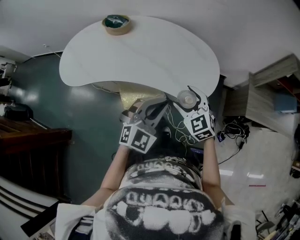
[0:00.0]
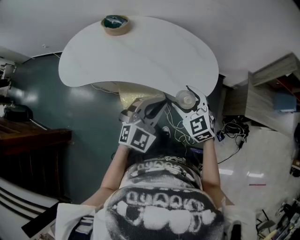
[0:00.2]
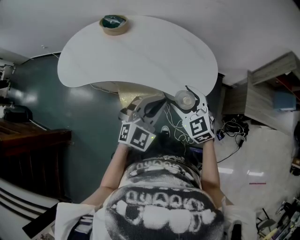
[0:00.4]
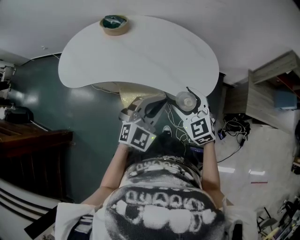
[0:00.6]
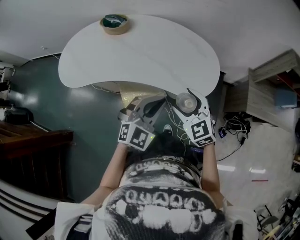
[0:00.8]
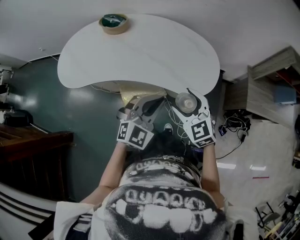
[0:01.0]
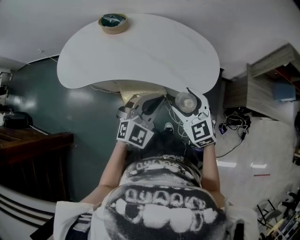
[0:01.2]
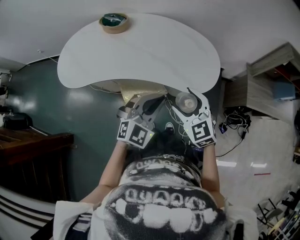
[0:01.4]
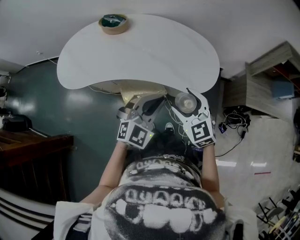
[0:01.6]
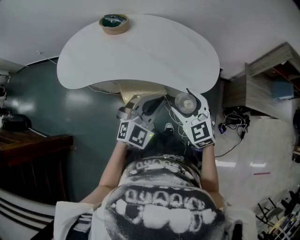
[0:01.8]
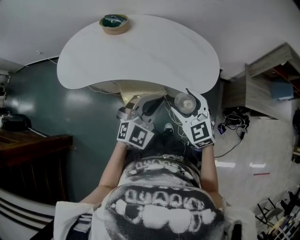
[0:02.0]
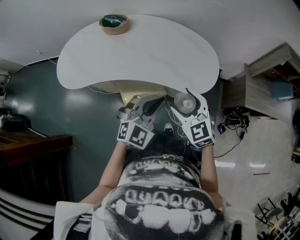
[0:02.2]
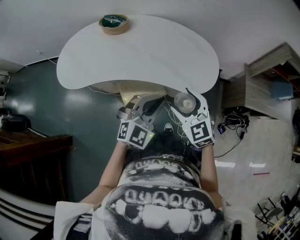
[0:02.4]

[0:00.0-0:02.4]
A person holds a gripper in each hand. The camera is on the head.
0:00.0 to 0:01.2: The right gripper shifts by approximately 5 cm.
0:01.2 to 0:02.4: The grippers stay close to where they were, moving slightly.

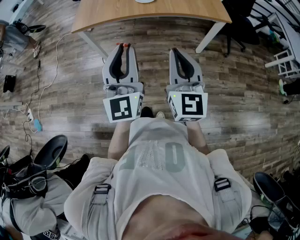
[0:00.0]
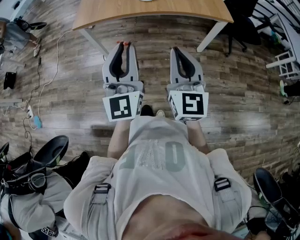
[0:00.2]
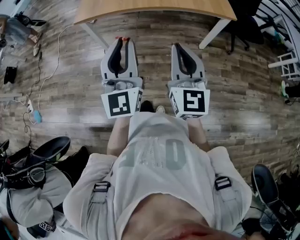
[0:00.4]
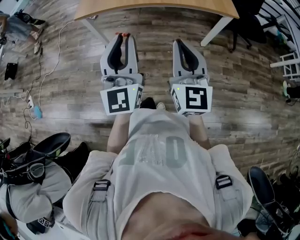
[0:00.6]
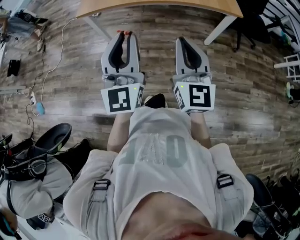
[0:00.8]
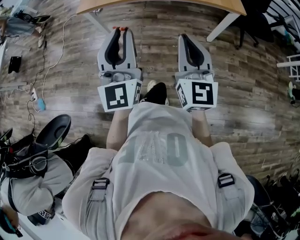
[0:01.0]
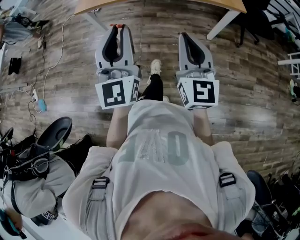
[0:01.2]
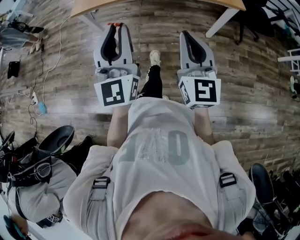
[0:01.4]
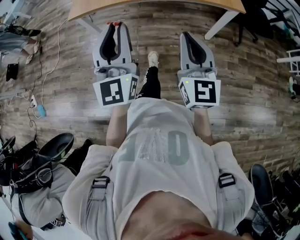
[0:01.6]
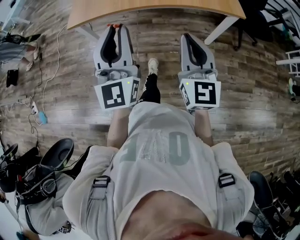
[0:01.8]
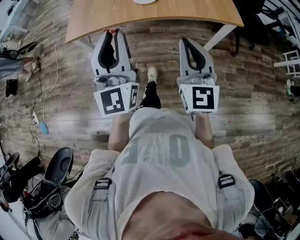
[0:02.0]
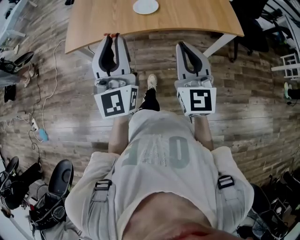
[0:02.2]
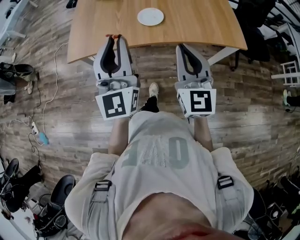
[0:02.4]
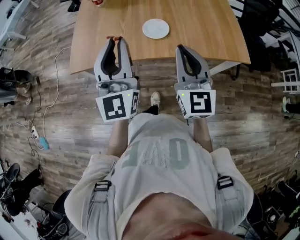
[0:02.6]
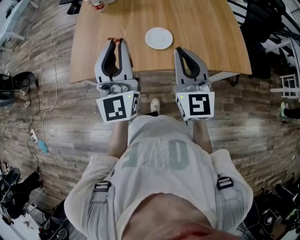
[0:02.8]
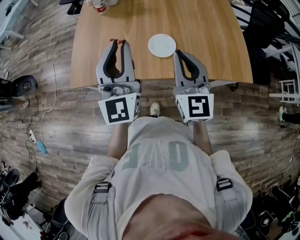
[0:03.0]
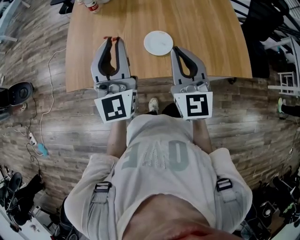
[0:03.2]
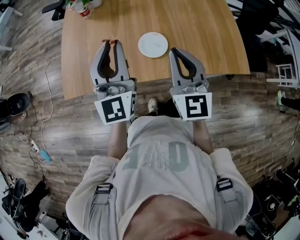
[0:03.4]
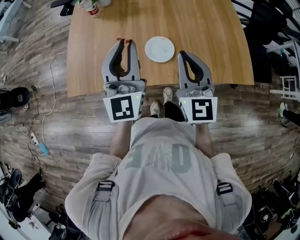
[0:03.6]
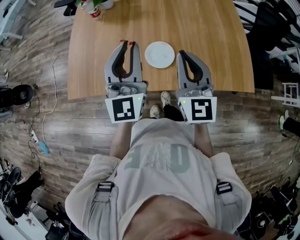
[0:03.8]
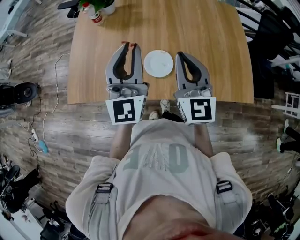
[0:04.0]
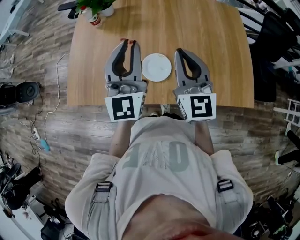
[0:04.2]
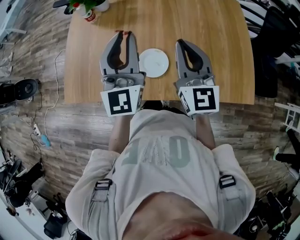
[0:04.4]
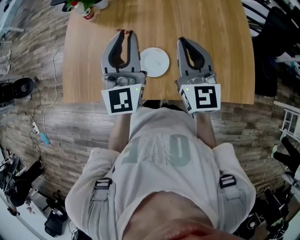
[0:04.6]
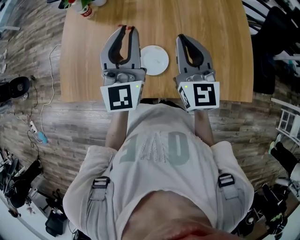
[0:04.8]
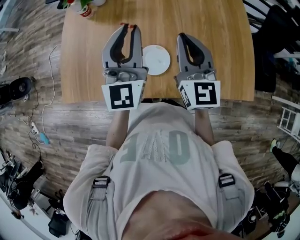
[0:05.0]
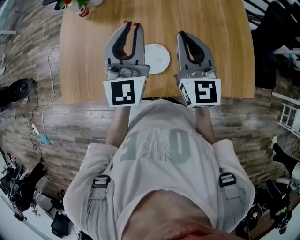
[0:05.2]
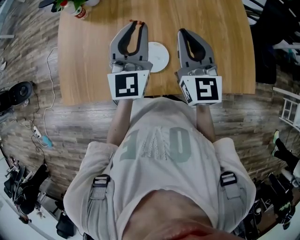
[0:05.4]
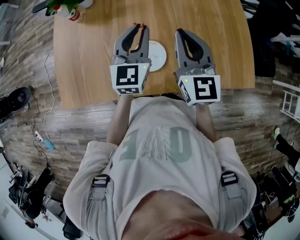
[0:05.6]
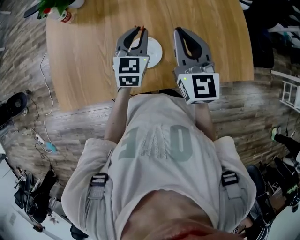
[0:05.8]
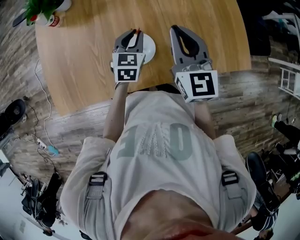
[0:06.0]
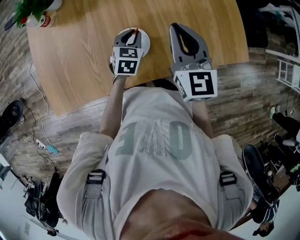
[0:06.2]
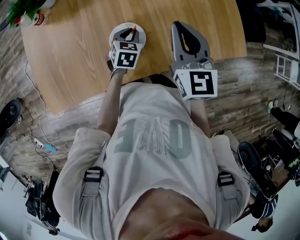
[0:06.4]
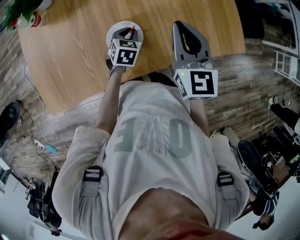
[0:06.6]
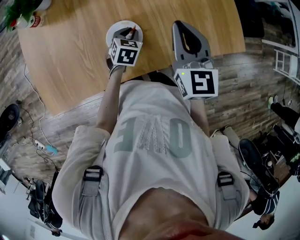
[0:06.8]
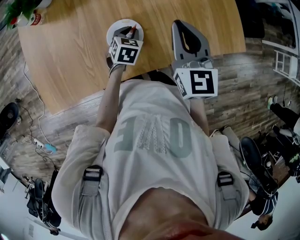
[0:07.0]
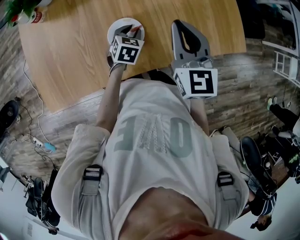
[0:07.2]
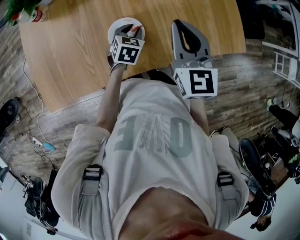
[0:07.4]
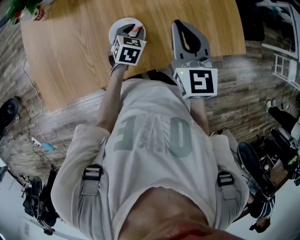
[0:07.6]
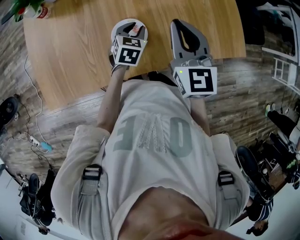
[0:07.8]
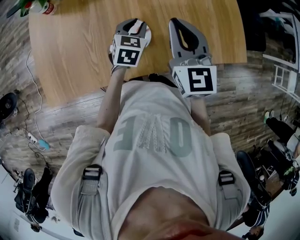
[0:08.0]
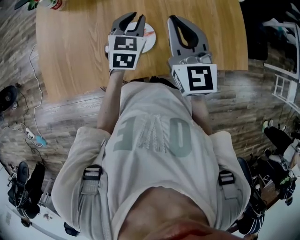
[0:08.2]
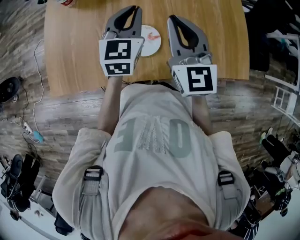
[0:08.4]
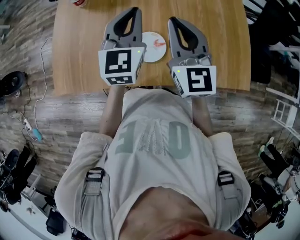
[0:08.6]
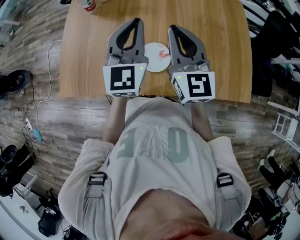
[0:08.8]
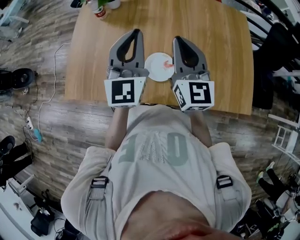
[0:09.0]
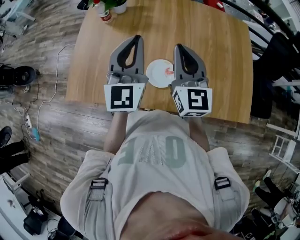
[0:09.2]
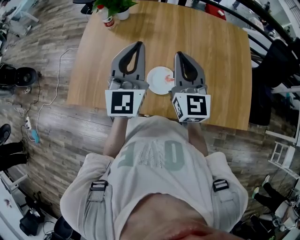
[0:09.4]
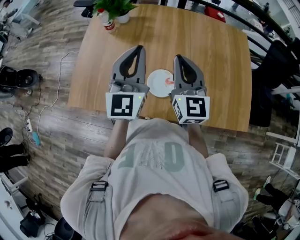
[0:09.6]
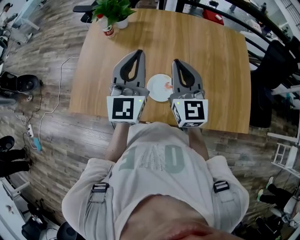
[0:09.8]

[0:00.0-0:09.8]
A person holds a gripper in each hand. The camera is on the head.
0:00.0 to 0:01.4: The grippers make only small movements.
0:01.4 to 0:02.8: Both grippers are carried forward, about 40 cm.
0:02.8 to 0:04.2: The right gripper is displaced forward by some 15 cm, while the left gripper goes roughly 20 cm forward and to the right.
0:04.2 to 0:05.6: The right gripper shifts by about 5 cm. The left gripper shifts approximately 15 cm downward, forward and to the right, and rotates approximately 30 degrees.
0:05.6 to 0:07.0: The left gripper shifts about 25 cm downward, and tilts its fingers some 40 degrees downward, while the right gripper heads to the right, covering approximately 5 cm.
0:07.0 to 0:08.4: The right gripper shifts some 10 cm to the left. Meanwhile the left gripper moves upward, some 25 cm, and points its fingers some 40 degrees further upward.
0:08.4 to 0:09.8: The right gripper shifts by about 5 cm. Meanwhile the left gripper heads upward and to the left, covering roughly 15 cm, and turns by about 30 degrees.

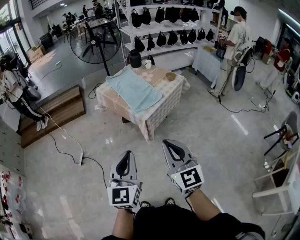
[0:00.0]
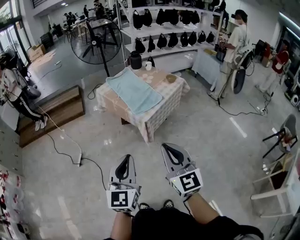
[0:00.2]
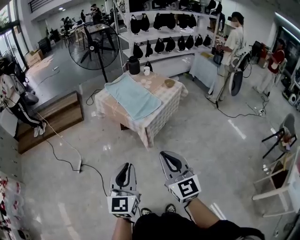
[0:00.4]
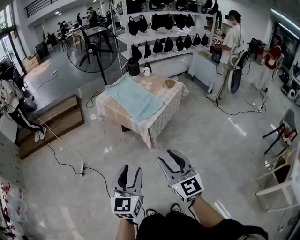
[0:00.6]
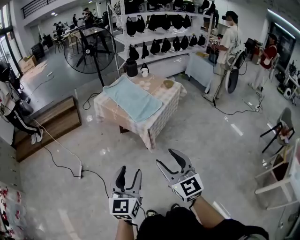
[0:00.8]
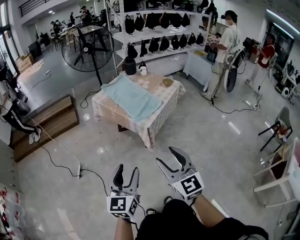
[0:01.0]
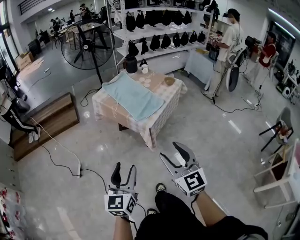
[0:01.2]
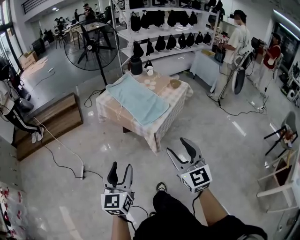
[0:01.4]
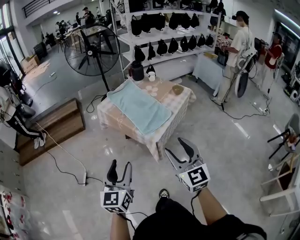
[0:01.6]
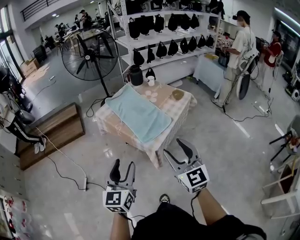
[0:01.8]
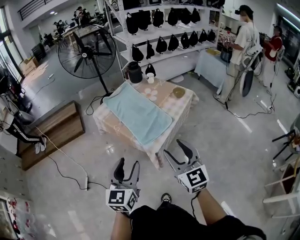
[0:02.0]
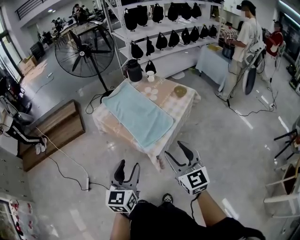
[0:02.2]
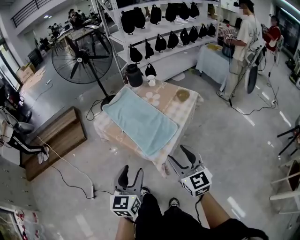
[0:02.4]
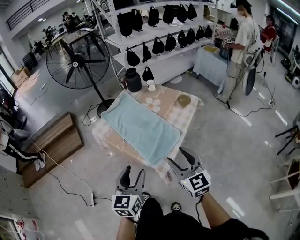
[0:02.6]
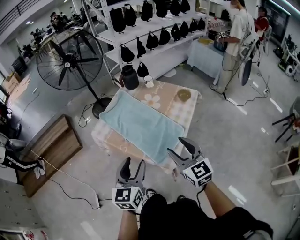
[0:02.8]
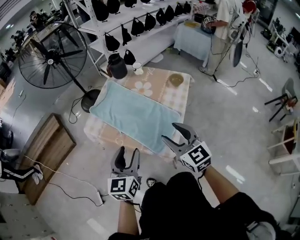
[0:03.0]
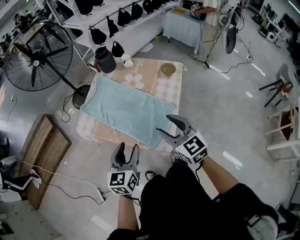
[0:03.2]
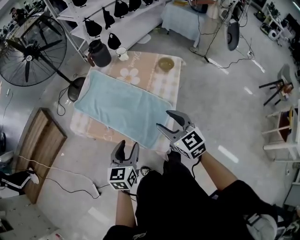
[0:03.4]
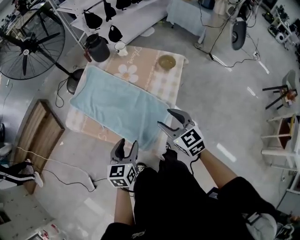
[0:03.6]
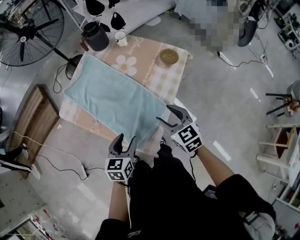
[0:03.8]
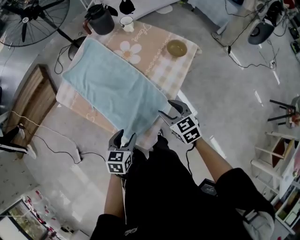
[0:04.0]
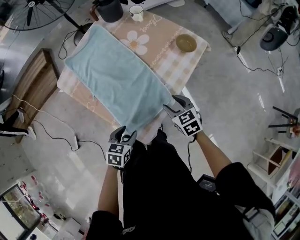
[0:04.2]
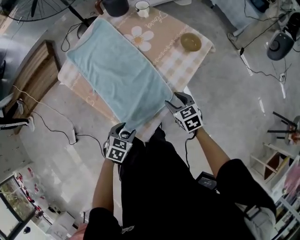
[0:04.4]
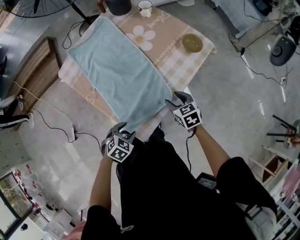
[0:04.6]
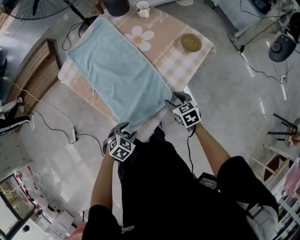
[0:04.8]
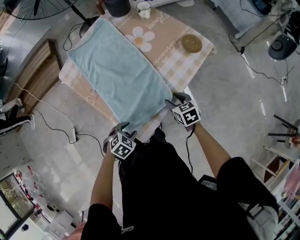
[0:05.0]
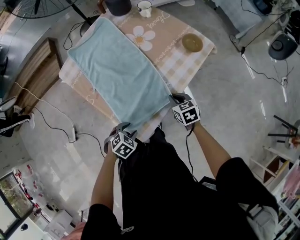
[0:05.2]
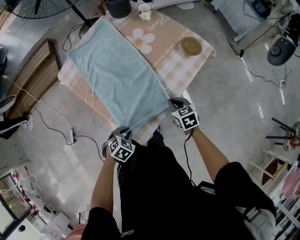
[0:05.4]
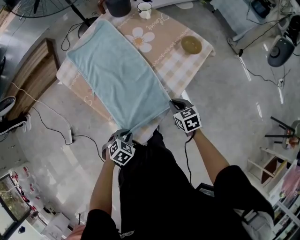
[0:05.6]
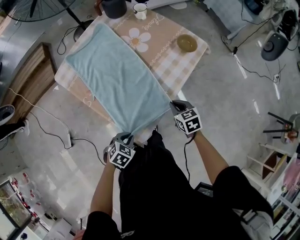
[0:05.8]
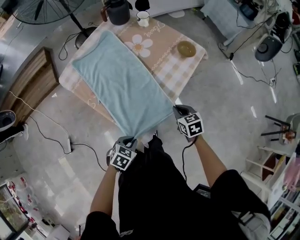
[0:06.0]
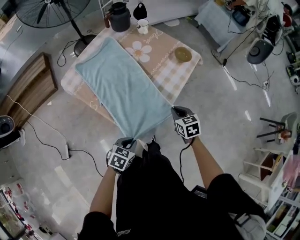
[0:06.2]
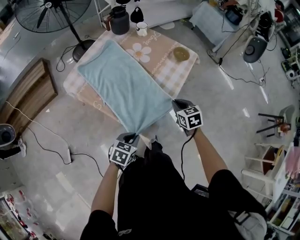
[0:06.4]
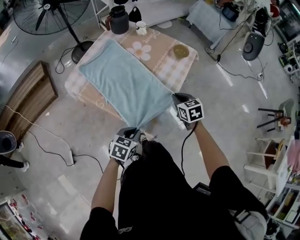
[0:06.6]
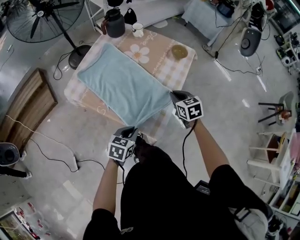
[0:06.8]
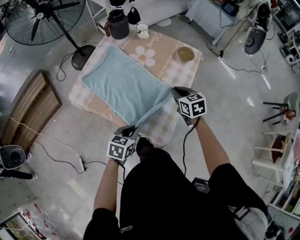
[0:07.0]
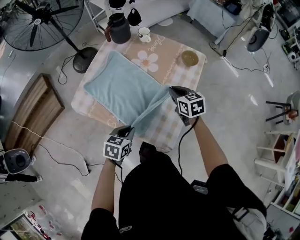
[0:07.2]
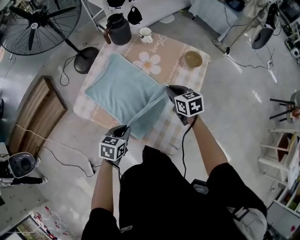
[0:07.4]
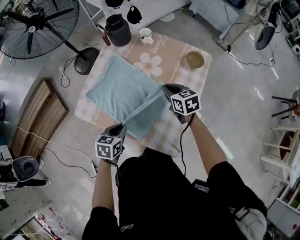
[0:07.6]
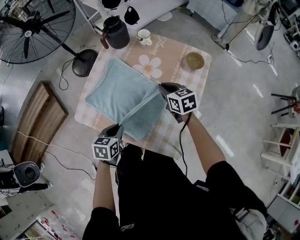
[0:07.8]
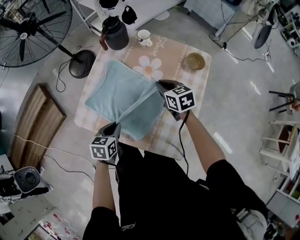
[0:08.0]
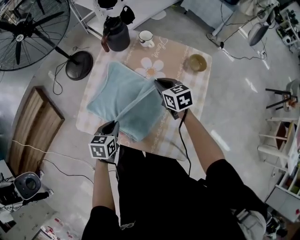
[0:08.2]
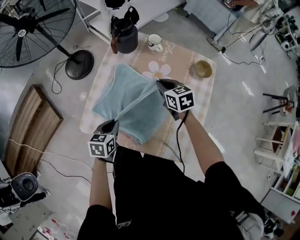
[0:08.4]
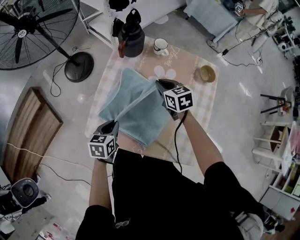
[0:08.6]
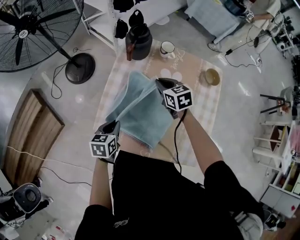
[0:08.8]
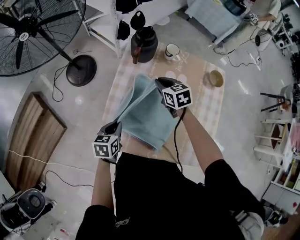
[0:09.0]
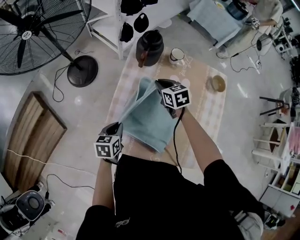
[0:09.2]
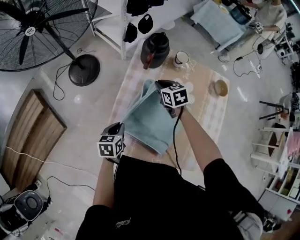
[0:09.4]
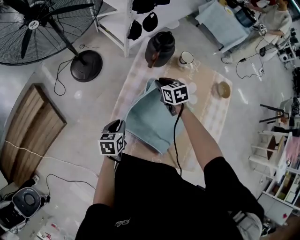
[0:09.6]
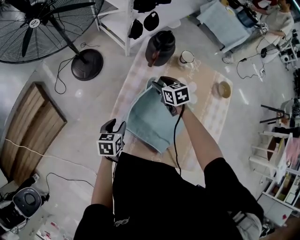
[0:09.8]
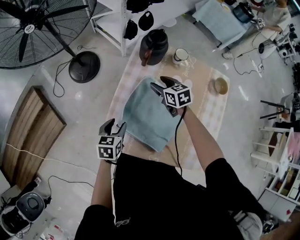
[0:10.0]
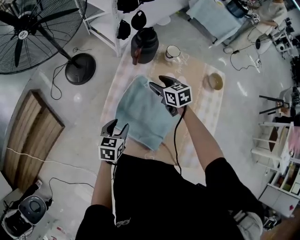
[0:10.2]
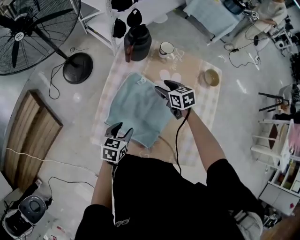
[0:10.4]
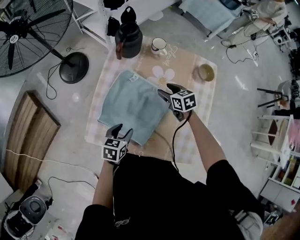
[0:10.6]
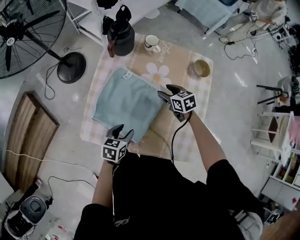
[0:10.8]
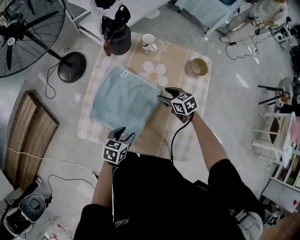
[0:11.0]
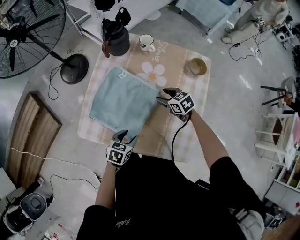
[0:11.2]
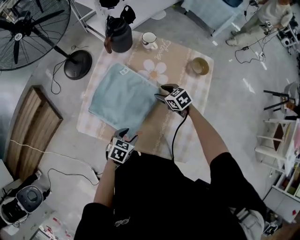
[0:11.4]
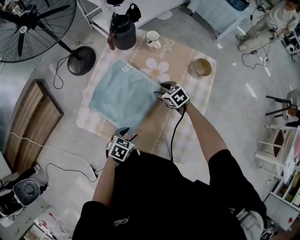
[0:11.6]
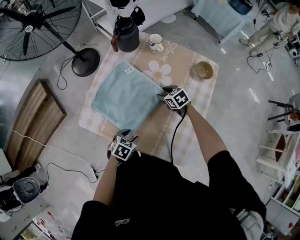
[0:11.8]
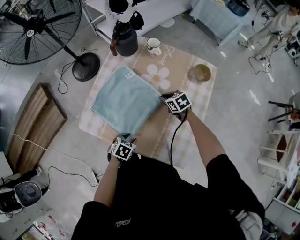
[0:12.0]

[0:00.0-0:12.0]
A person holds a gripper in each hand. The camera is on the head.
0:00.0 to 0:01.6: The left gripper is displaced forward and to the left by about 20 cm, and opens up. Meanwhile the right gripper is displaced forward by some 20 cm, and opens its fingers.
0:01.6 to 0:03.0: The grippers both shift forward by roughly 35 cm. The left gripper swivels roughly 20 degrees.
0:03.0 to 0:04.4: The right gripper moves downward, to the right and forward, roughly 35 cm, and points its fingers about 30 degrees further downward. Meanwhile the left gripper heads downward and to the right, covering about 35 cm, and tips its fingers downward by roughly 50 degrees.
0:04.4 to 0:06.0: The left gripper moves backward, approximately 5 cm, and closes, while the right gripper closes its fingers.
0:06.0 to 0:07.6: The left gripper heads to the left and forward, covering some 30 cm, while the right gripper goes some 25 cm to the left, forward and upward.
0:07.6 to 0:09.0: The grippers both shift to the left and forward by about 30 cm.
0:09.0 to 0:10.4: The grippers both shift to the right by roughly 5 cm. The right gripper opens its fingers. Meanwhile the left gripper opens.
0:10.4 to 0:12.0: Both grippers move to the right, backward and downward, roughly 20 cm. The left gripper changes its angle by about 20 degrees, while the right gripper closes its fingers.
